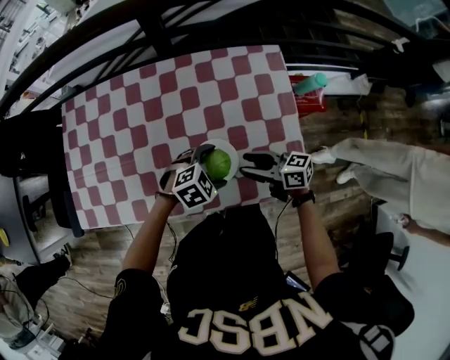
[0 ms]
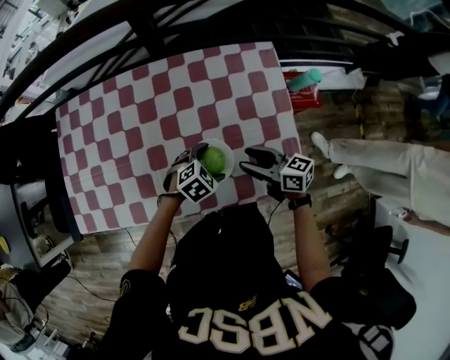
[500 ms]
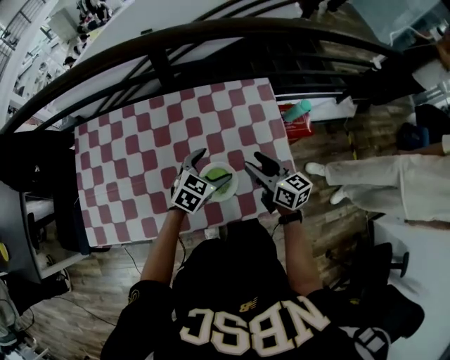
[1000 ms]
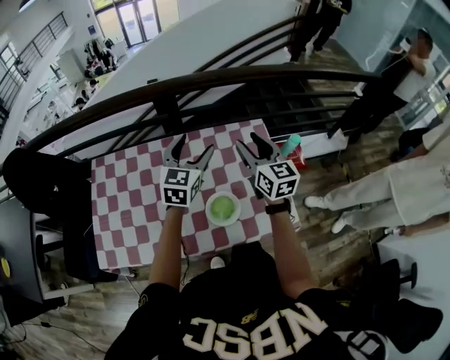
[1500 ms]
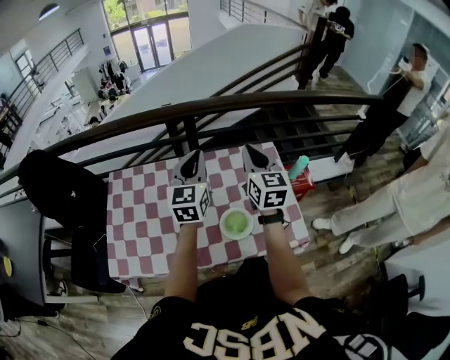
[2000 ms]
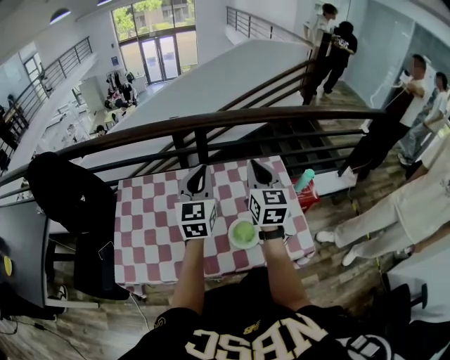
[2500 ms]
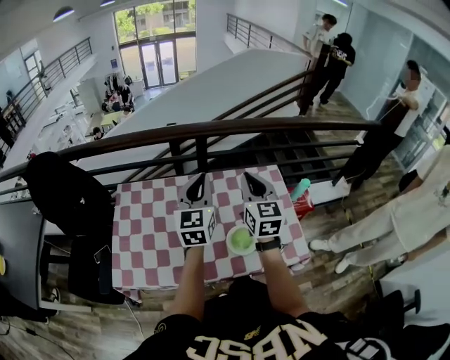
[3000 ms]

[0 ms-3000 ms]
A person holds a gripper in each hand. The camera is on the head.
0 ms to 1500 ms: Both grippers move upward, some 30 cm. The left gripper angles its fingers upward, by approximately 40 degrees, while the right gripper turns by about 60 degrees.
1500 ms to 3000 ms: The two grippers go approximately 15 cm to the left, upward and backward. The right gripper closes its fingers; the left gripper closes its fingers.

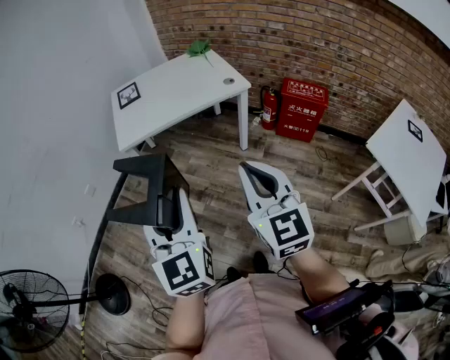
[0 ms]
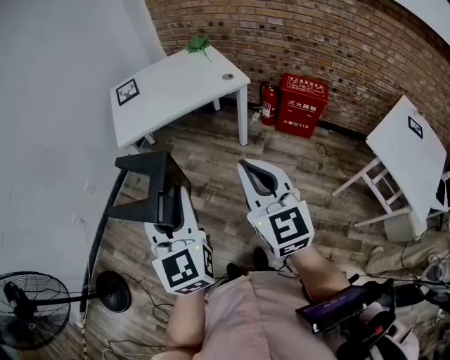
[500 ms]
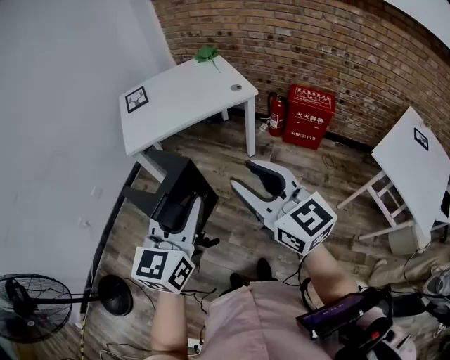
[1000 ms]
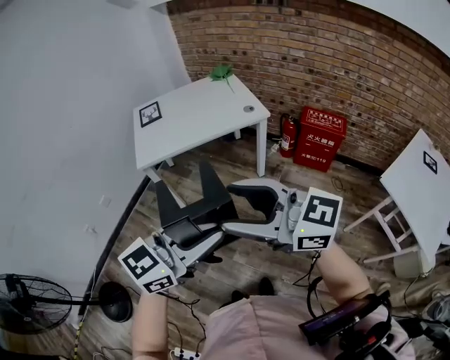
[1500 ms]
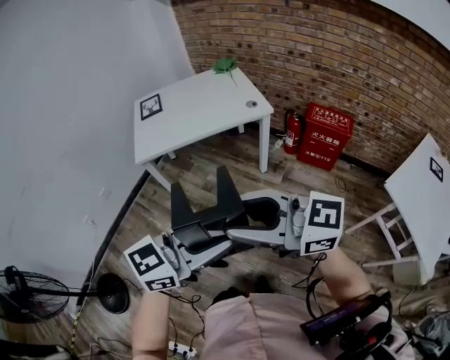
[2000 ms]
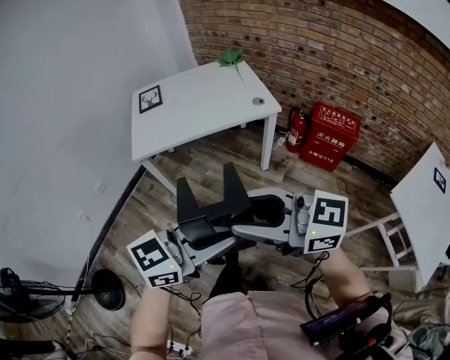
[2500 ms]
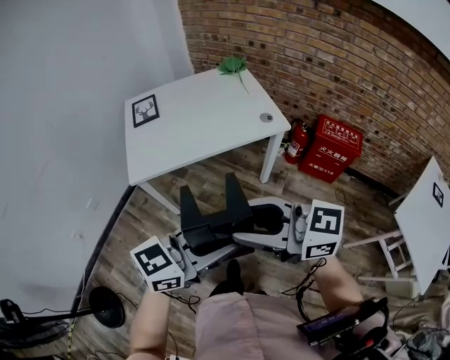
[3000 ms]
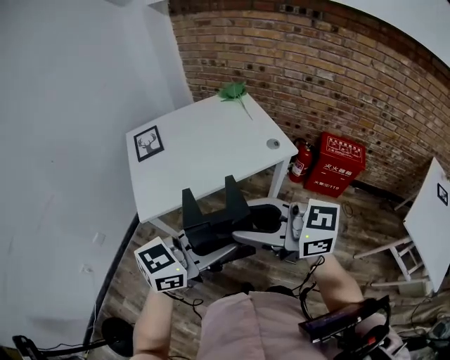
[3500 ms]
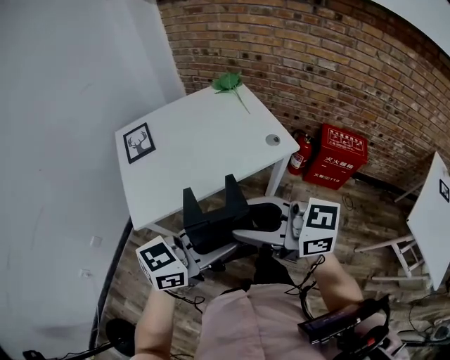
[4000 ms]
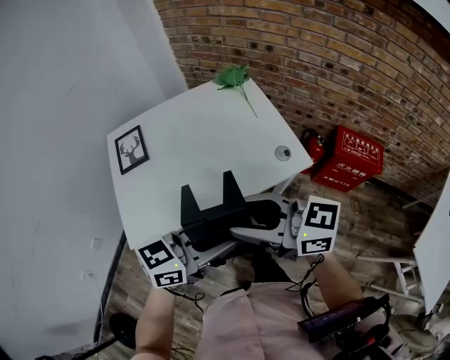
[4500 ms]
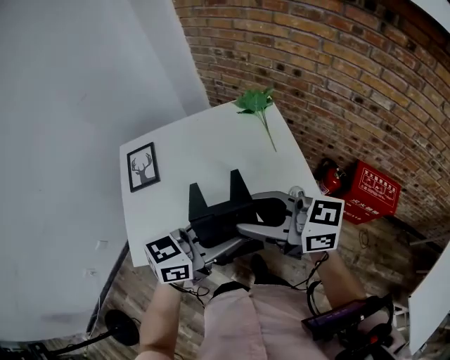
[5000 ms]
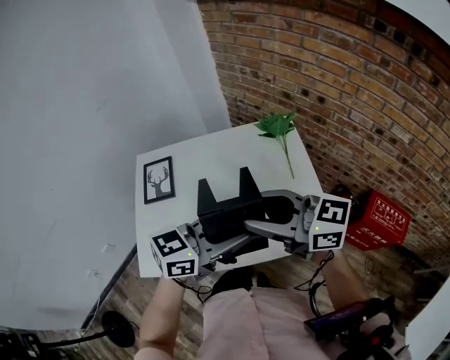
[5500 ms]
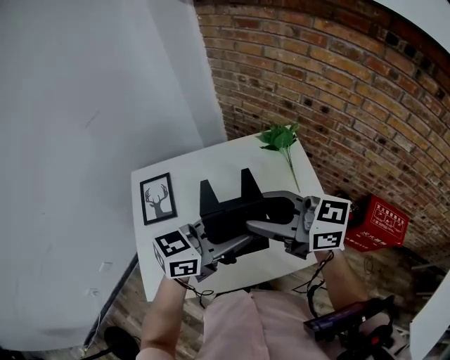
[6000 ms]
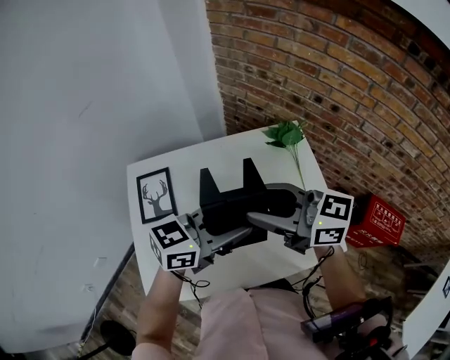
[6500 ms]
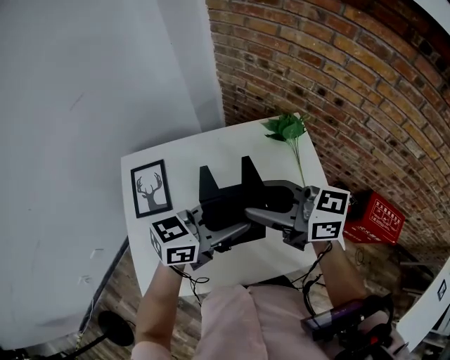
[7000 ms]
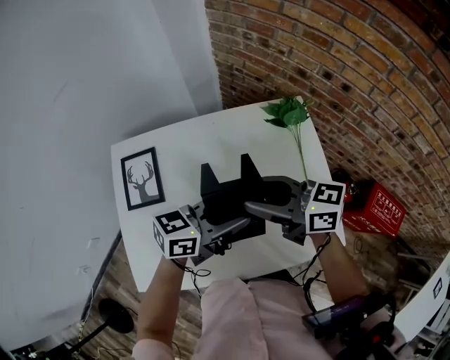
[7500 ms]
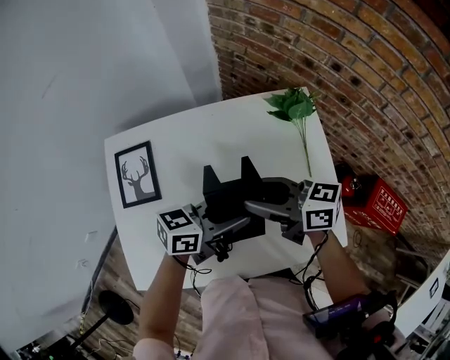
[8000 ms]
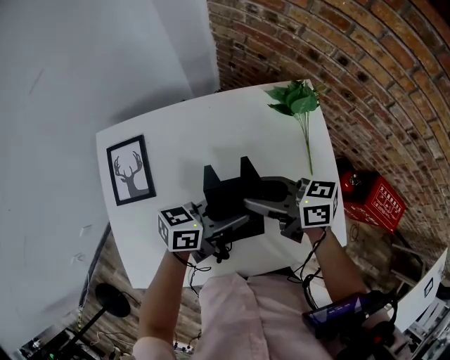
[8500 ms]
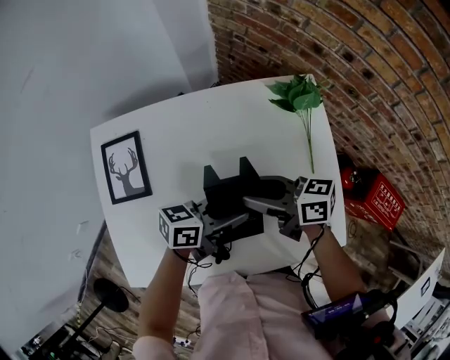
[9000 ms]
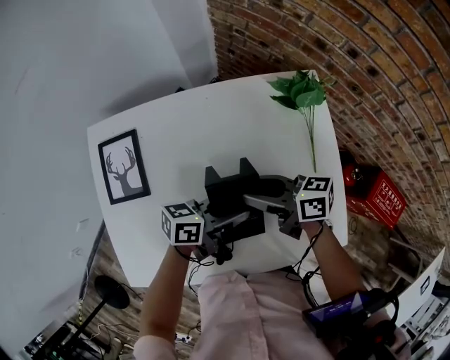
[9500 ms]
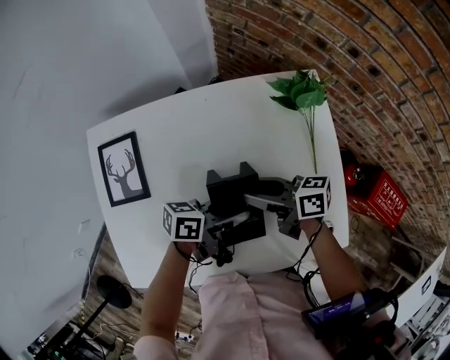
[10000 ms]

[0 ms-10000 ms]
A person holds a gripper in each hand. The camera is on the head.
0 ms to 2000 ms: The right gripper travels upward by some 5 cm, turns by approximately 60 degrees, and opens up; the left gripper changes place by approximately 15 cm, and changes its angle by some 70 degrees.
2000 ms to 4000 ms: The left gripper ends up about 35 cm from where it was. The right gripper changes place by some 35 cm.
4000 ms to 6000 ms: The pair of grippers is taken some 40 cm.
6000 ms to 8000 ms: Both grippers move downward, some 15 cm. The left gripper turns by about 20 degrees. Meanwhile the right gripper rotates approximately 20 degrees.
8000 ms to 10000 ms: Both grippers move downward, approximately 10 cm. The left gripper changes its angle by roughly 20 degrees.

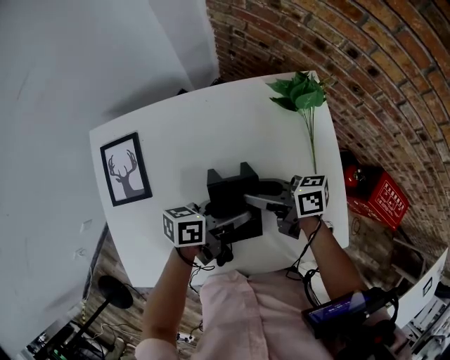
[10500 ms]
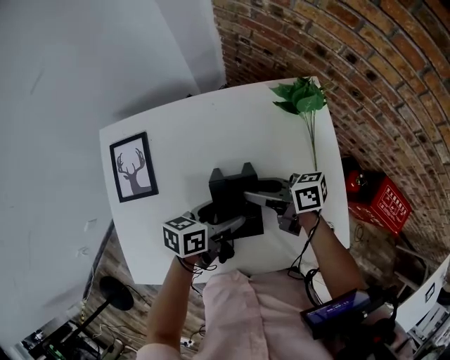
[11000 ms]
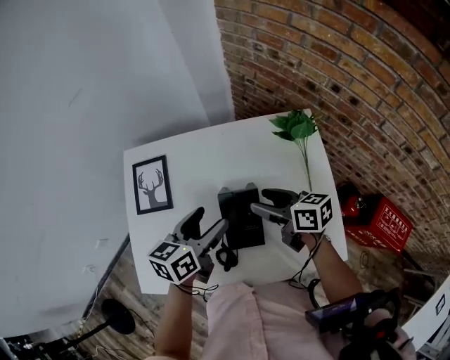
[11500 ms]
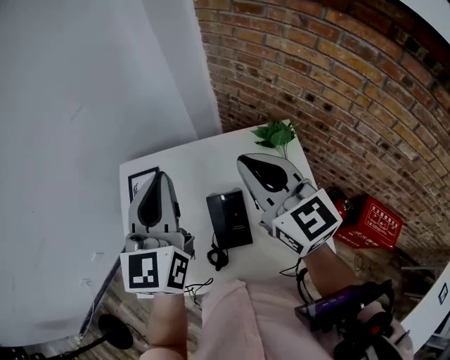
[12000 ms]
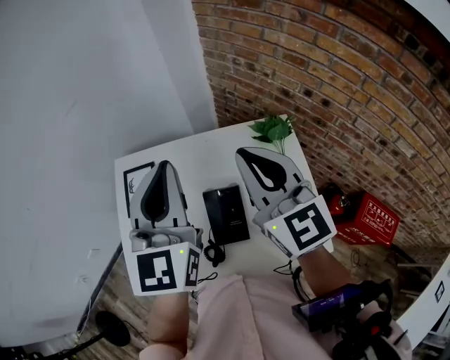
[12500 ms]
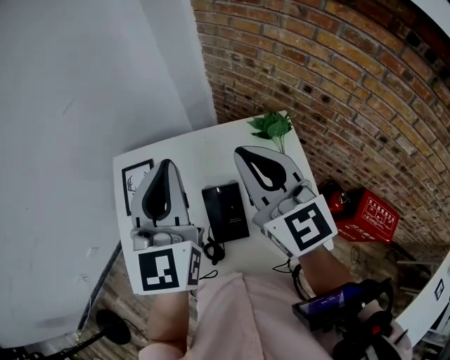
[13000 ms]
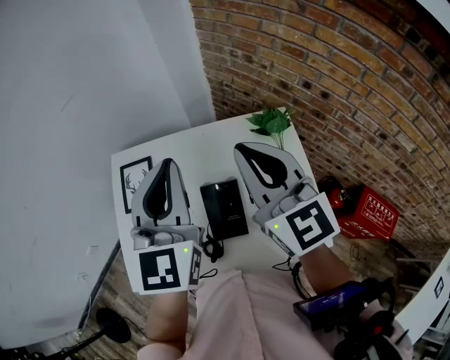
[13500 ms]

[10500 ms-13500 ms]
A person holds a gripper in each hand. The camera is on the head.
10500 ms to 12000 ms: Both grippers travel together upward, about 35 cm. The right gripper rolls counterclockwise, seen from behind, by roughly 60 degrees, and closes. Meanwhile the left gripper changes its angle by some 80 degrees, and closes up.
12000 ms to 13500 ms: The grippers make only small movements.

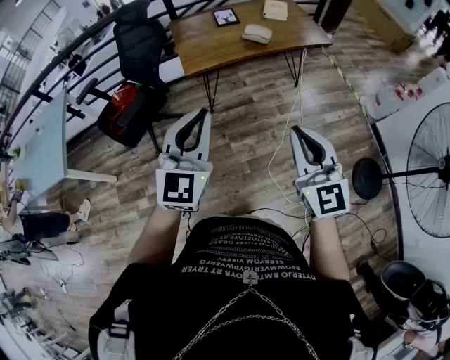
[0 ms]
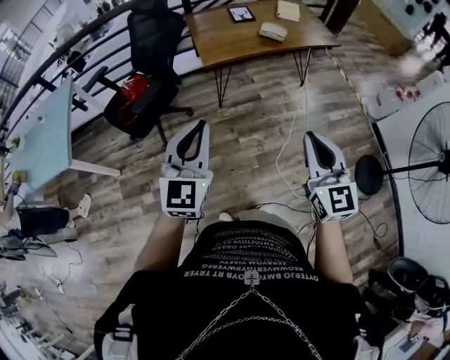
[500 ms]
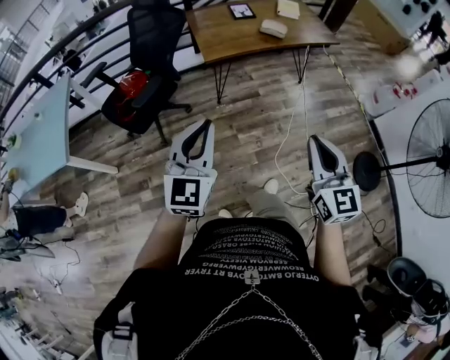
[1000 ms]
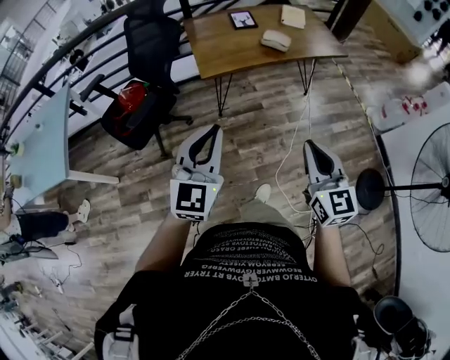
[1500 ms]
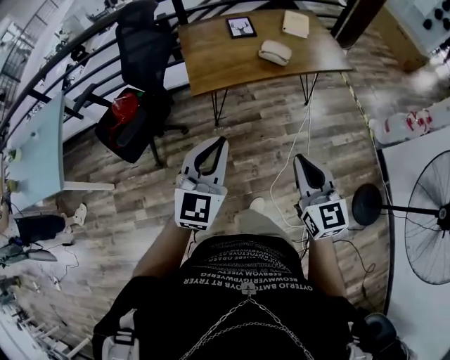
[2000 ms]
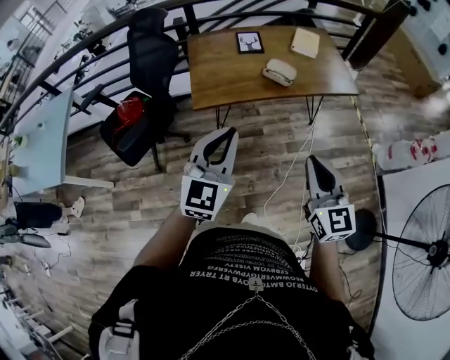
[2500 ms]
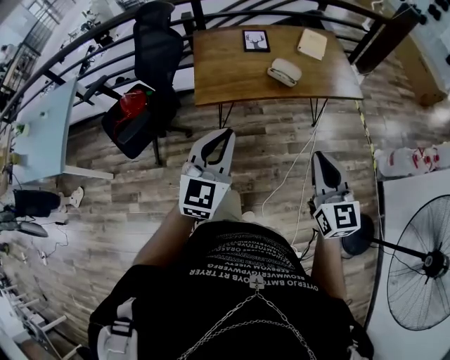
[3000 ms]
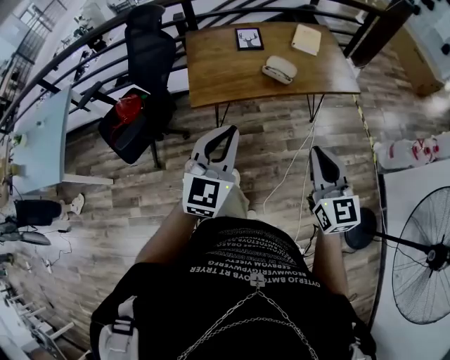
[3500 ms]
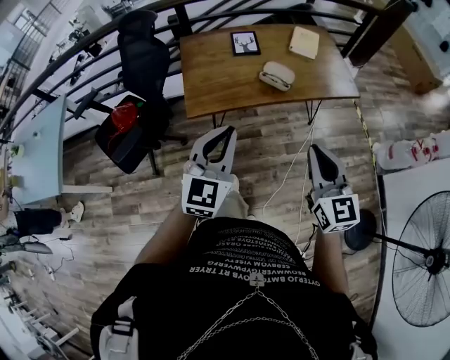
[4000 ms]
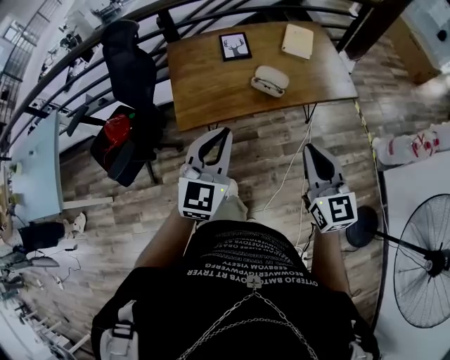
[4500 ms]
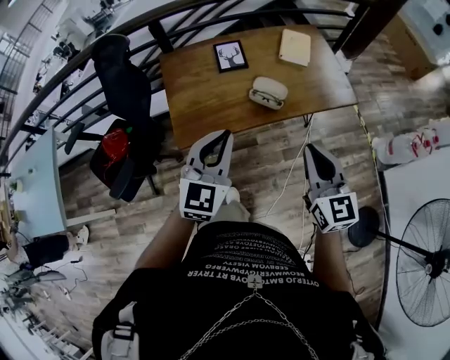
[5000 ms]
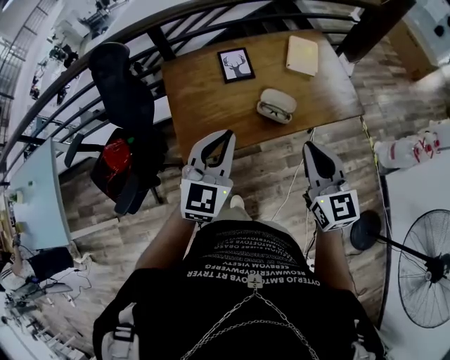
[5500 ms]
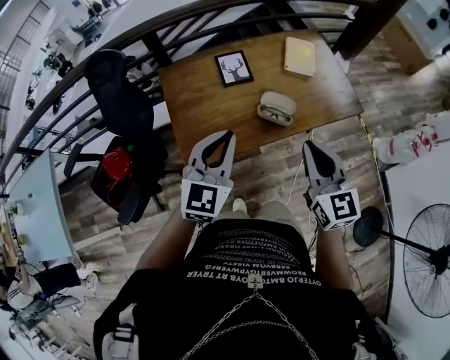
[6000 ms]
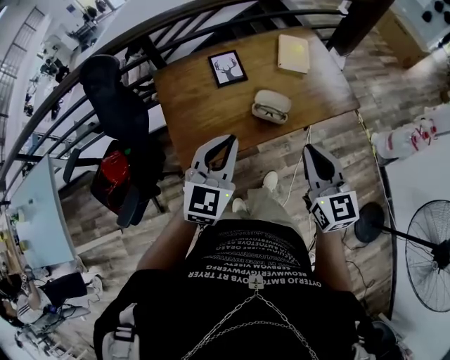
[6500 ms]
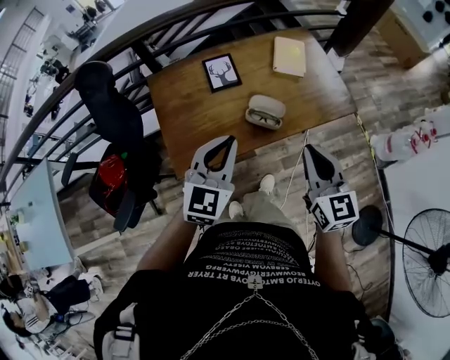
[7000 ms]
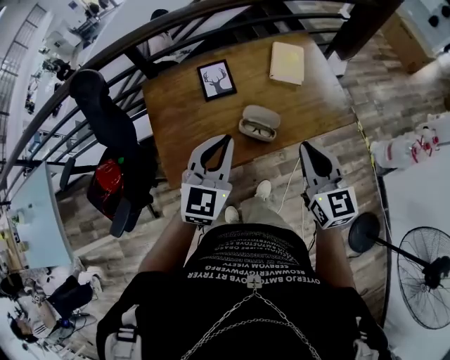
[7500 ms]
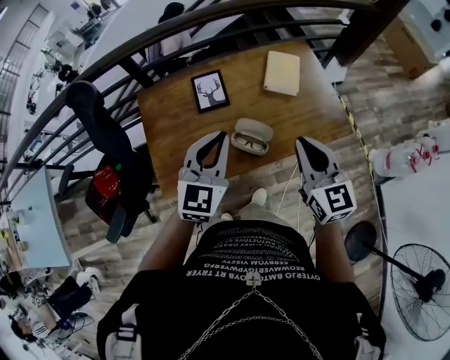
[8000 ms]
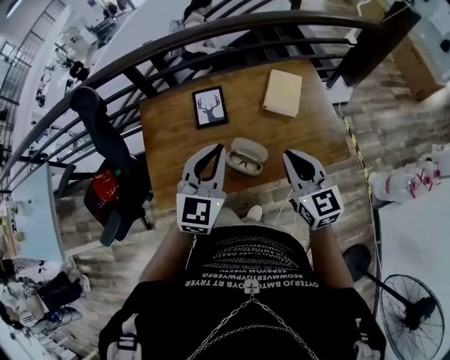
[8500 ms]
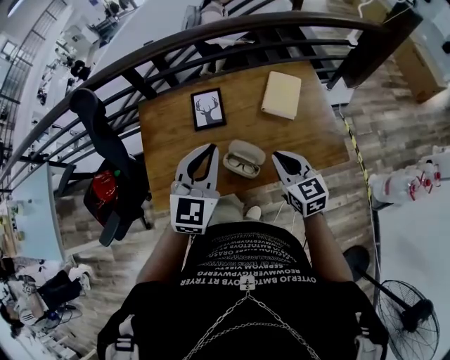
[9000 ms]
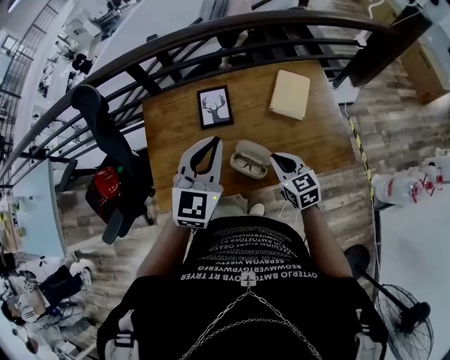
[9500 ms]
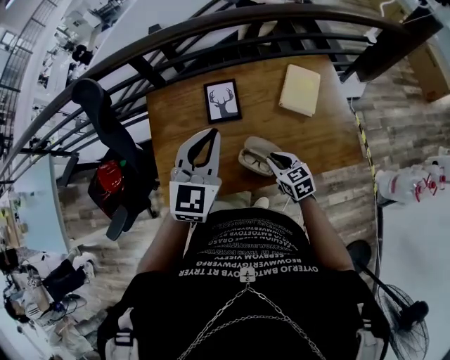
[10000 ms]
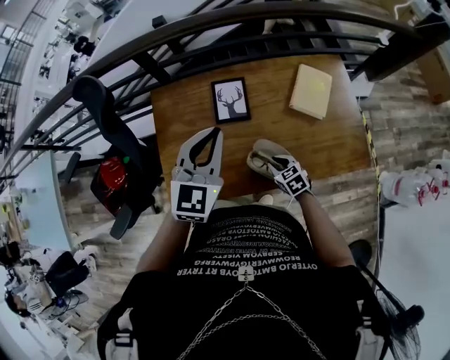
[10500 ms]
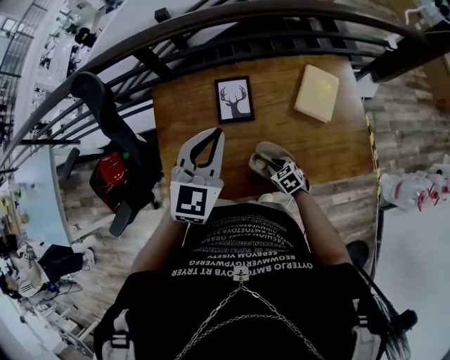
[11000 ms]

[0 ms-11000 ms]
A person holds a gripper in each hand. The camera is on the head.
0 ms to 2000 ms: Both grippers travel together forward and downward, approximately 15 cm.
2000 ms to 3500 ms: Both grippers move forward and to the right, some 15 cm.
3500 ms to 5500 ms: Both grippers travel together forward, some 30 cm.
5500 ms to 7500 ms: Both grippers move forward and to the right, roughly 10 cm.
7500 ms to 9000 ms: The right gripper goes about 15 cm forward and downward; the left gripper moves forward and to the right, some 10 cm.
9000 ms to 11000 ms: The right gripper is displaced downward by approximately 30 cm, and angles its fingers downward, by about 30 degrees; the left gripper heads forward and to the left, covering some 15 cm.
